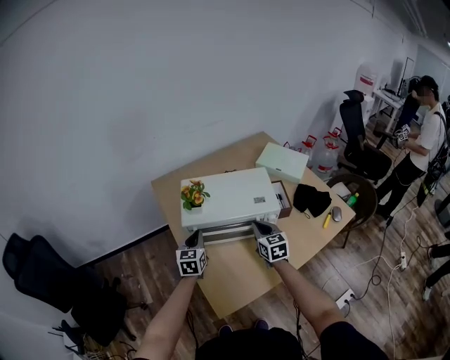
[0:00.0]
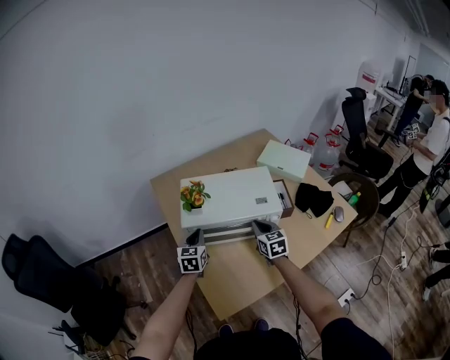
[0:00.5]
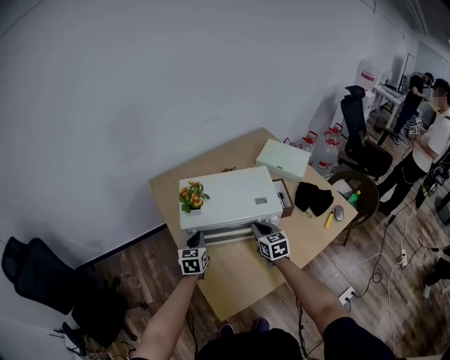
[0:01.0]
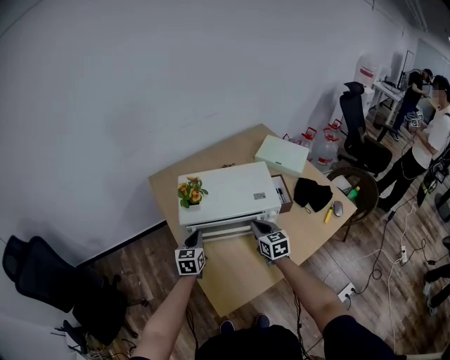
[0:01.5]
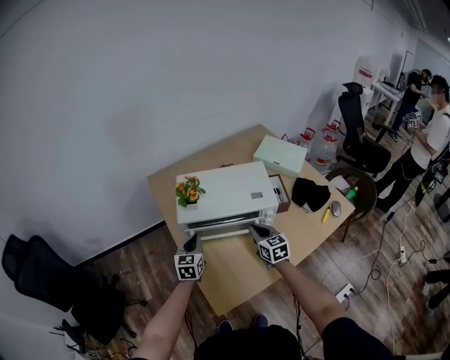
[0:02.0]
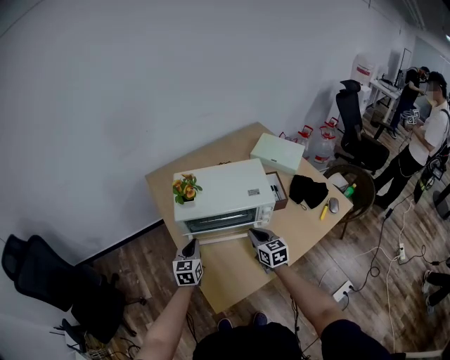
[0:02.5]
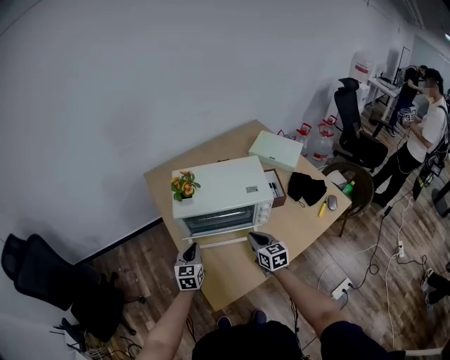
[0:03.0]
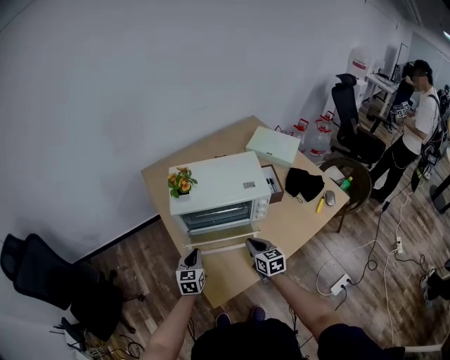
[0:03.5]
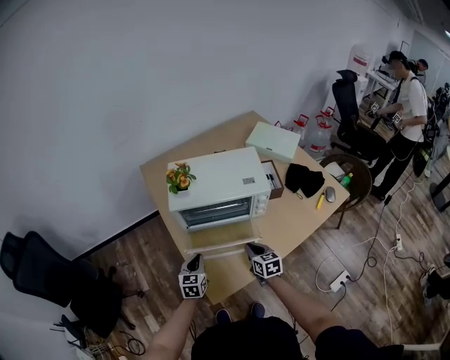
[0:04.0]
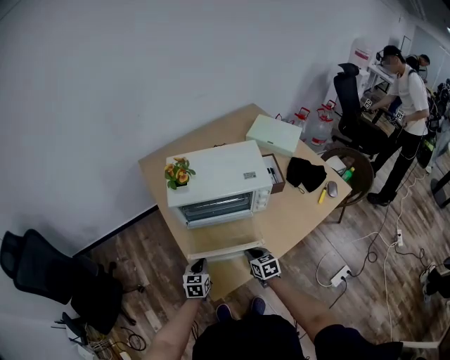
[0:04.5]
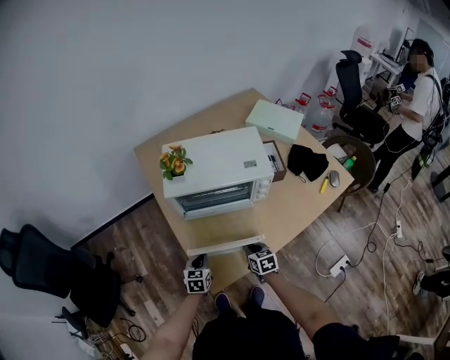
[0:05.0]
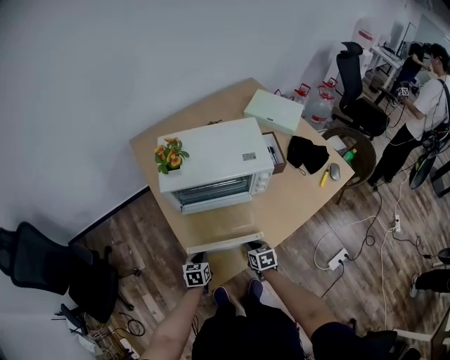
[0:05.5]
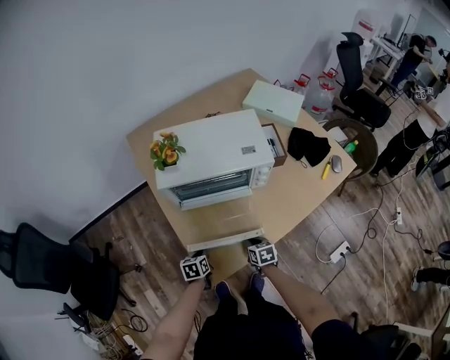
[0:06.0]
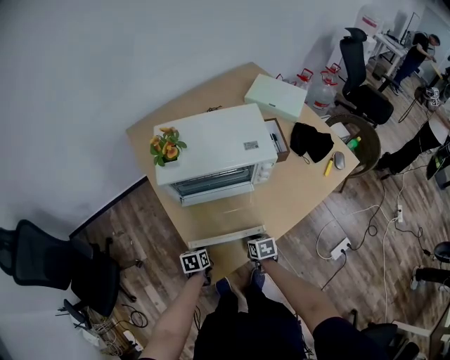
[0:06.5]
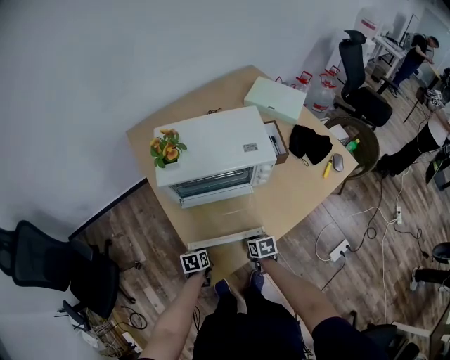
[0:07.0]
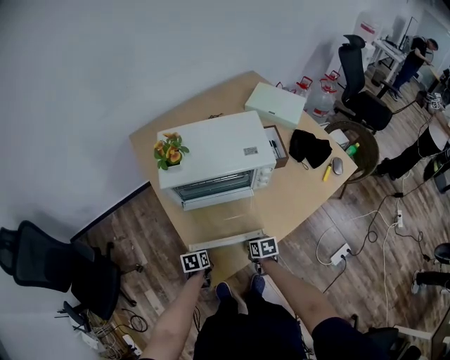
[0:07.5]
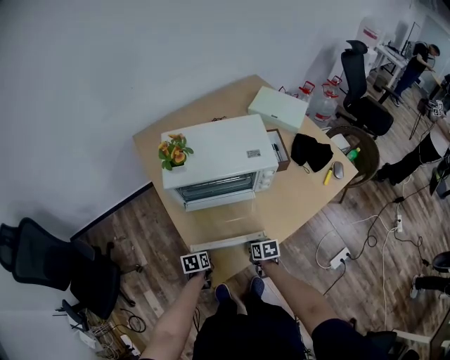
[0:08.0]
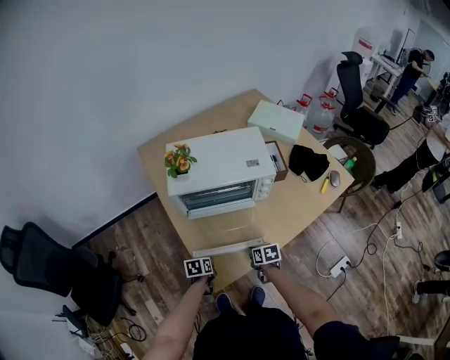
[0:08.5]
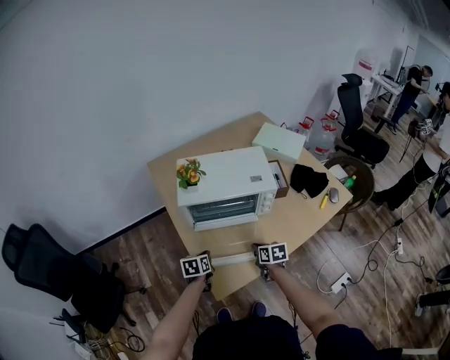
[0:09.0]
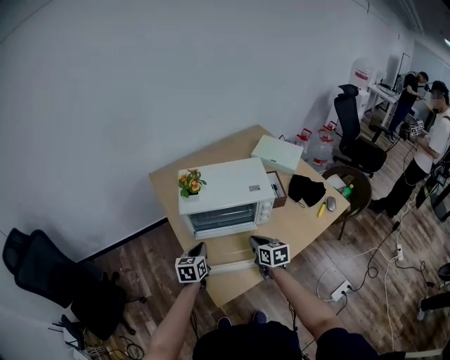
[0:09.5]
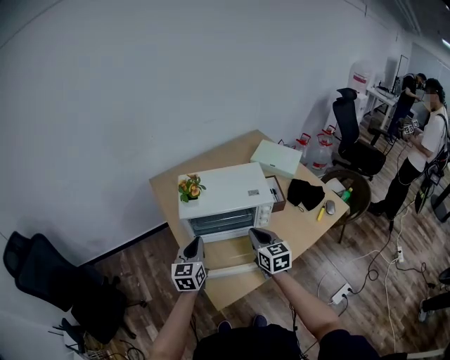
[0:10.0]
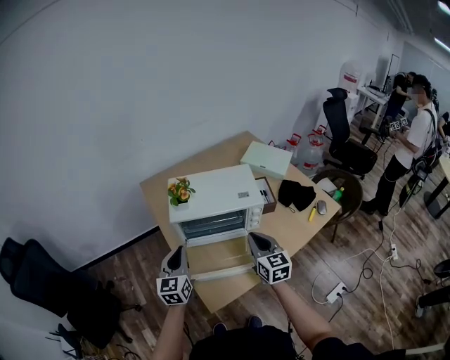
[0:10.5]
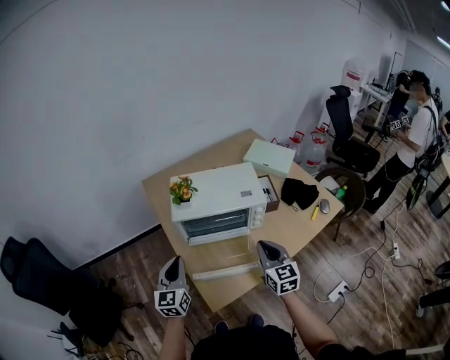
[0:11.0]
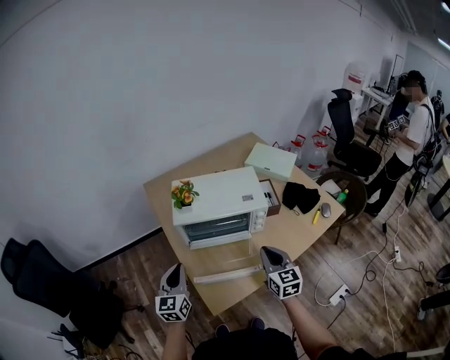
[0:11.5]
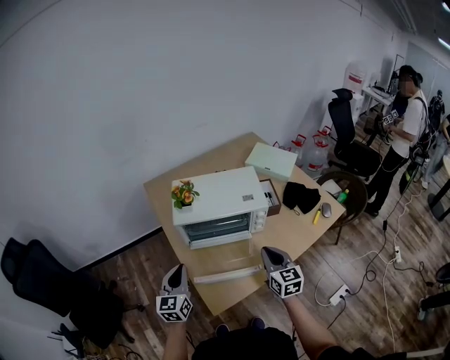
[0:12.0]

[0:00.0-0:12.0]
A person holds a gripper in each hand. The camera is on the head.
0:00.0 to 0:02.0: The grippers stay close to where they were, moving slightly.
0:02.0 to 0:04.0: The grippers both shift backward and downward by about 15 cm.
0:04.0 to 0:06.0: Both grippers move downward, approximately 15 cm. The right gripper turns by approximately 20 degrees. The left gripper changes its angle by about 30 degrees.
0:06.0 to 0:08.0: There are only small adjustments of the grippers.
0:08.0 to 0:10.0: Both grippers travel together upward, approximately 35 cm. The left gripper points its fingers roughly 50 degrees further upward. Meanwhile the right gripper tilts its fingers roughly 40 degrees upward.
0:10.0 to 0:12.0: The right gripper moves backward and to the right, about 10 cm. Meanwhile the left gripper travels backward by some 5 cm.

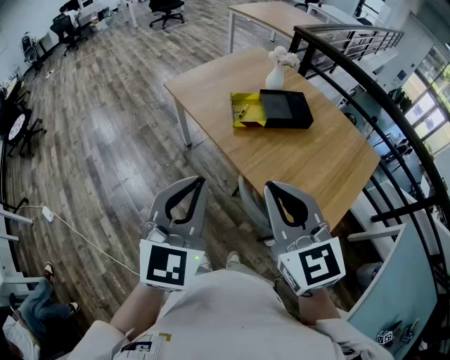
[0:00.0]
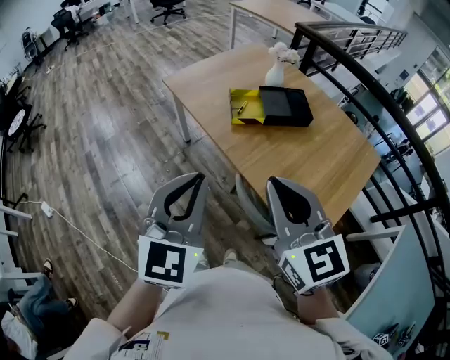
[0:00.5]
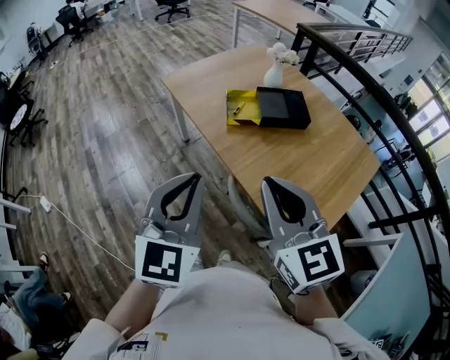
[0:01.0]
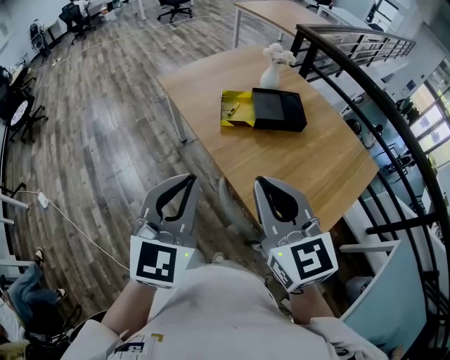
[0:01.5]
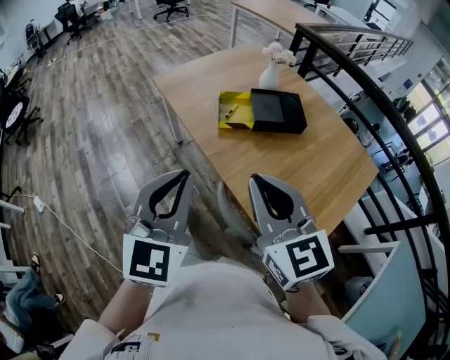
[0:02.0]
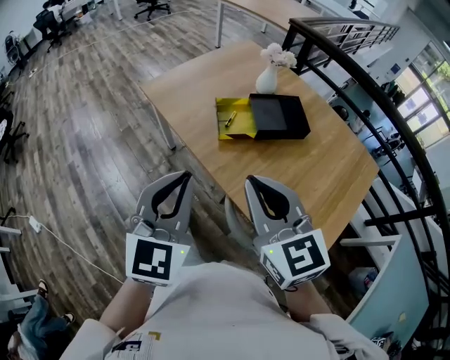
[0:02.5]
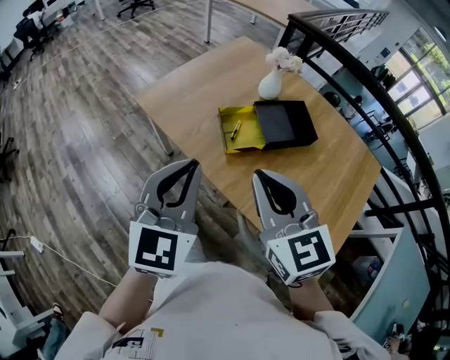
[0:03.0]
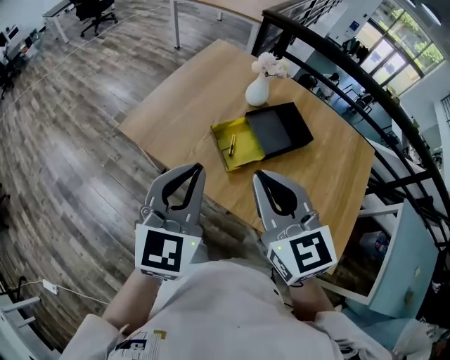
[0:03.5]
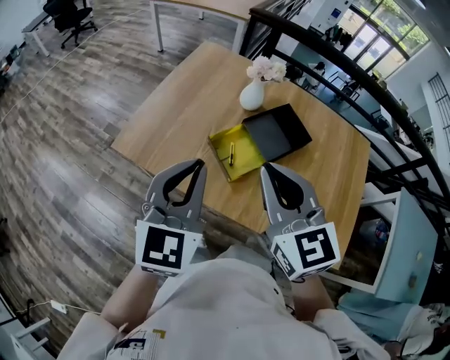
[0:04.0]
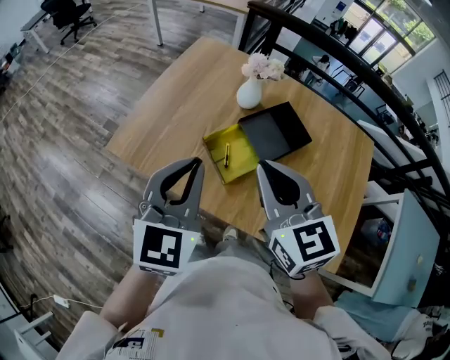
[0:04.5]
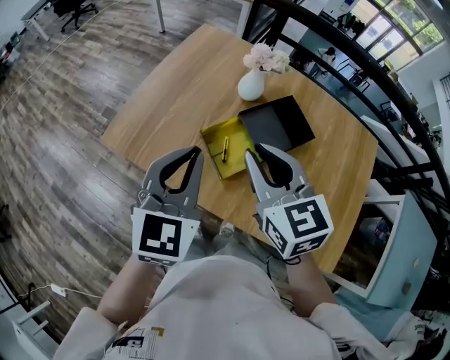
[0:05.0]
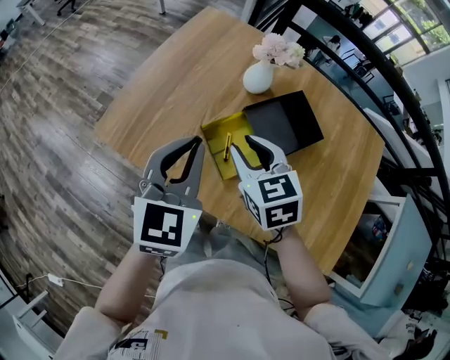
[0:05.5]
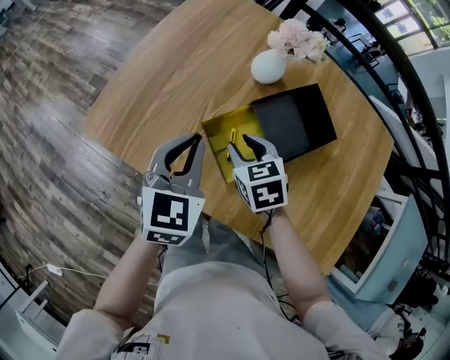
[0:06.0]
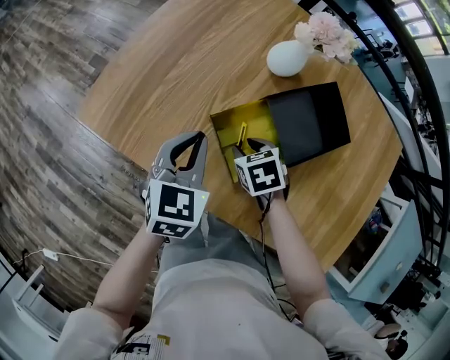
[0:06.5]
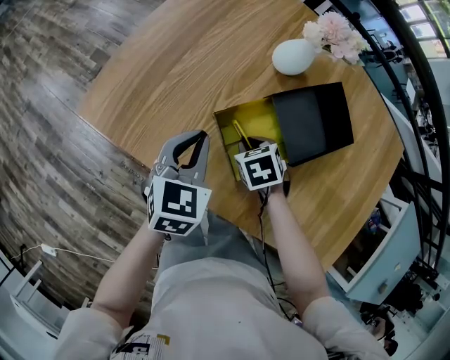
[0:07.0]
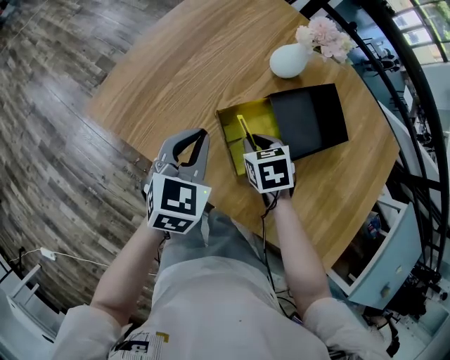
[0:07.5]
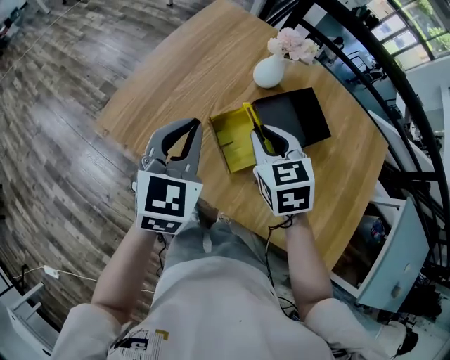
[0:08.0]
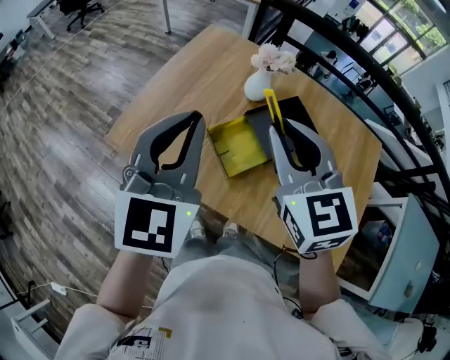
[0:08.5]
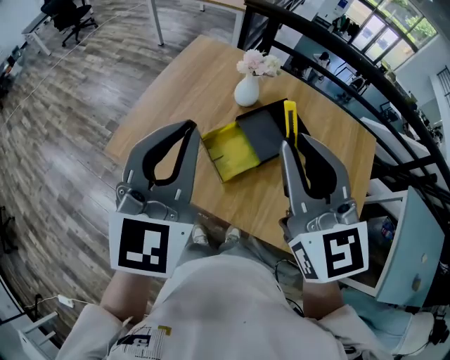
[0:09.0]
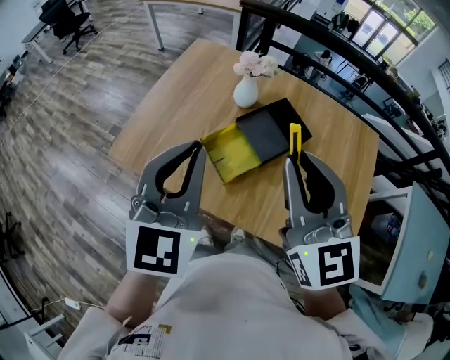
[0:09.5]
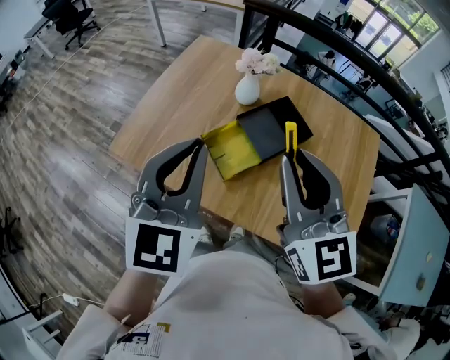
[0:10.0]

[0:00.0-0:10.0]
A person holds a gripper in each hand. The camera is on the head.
0:00.0 to 0:02.0: The left gripper moves to the right and forward, about 10 cm. The right gripper heads forward and to the right, covering roughly 10 cm.
0:02.0 to 0:04.0: The left gripper shifts by approximately 40 cm, and changes its angle by roughly 30 degrees, while the right gripper ends up roughly 40 cm from where it was, and changes its angle by roughly 30 degrees.
0:04.0 to 0:06.0: The grippers both shift downward and forward by about 30 cm. The right gripper points its fingers approximately 40 degrees further downward, and opens up.
0:06.0 to 0:08.0: The left gripper heads upward, covering about 5 cm; the right gripper is displaced upward by some 10 cm, and closes up.
0:08.0 to 0:10.0: The right gripper heads upward and backward, covering some 25 cm, and tilts its fingers roughly 40 degrees upward, while the left gripper is displaced upward, backward and to the right by some 20 cm.

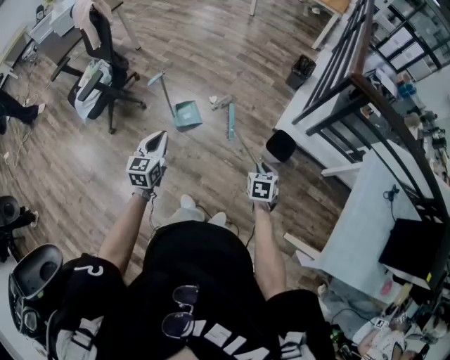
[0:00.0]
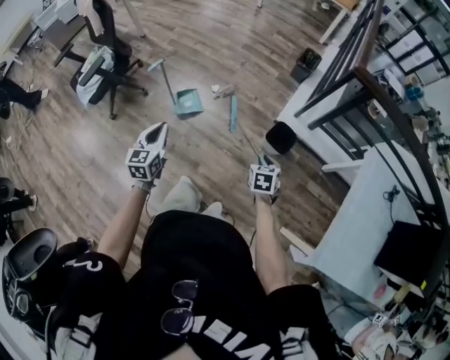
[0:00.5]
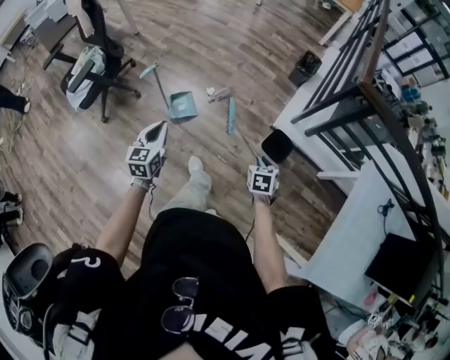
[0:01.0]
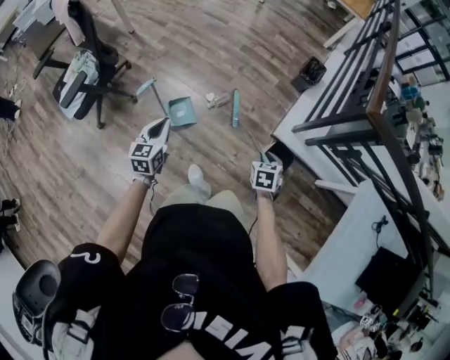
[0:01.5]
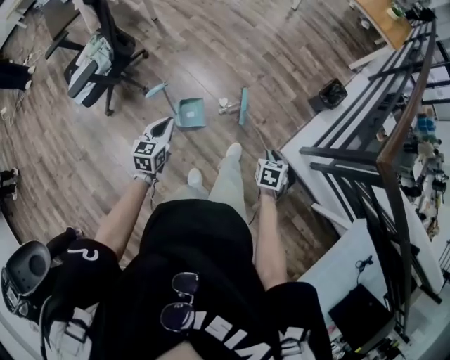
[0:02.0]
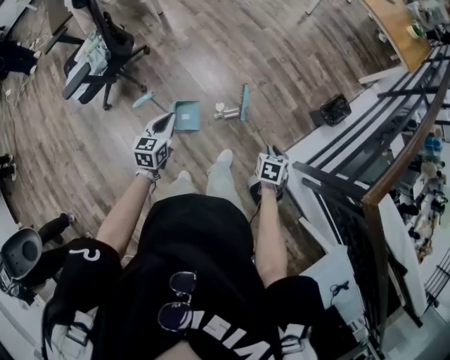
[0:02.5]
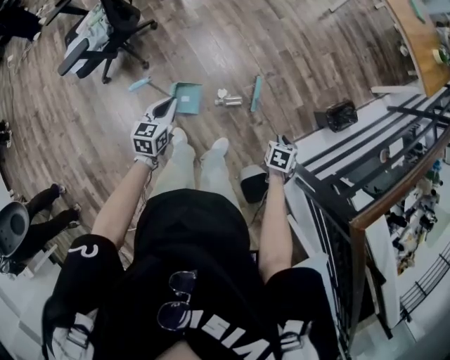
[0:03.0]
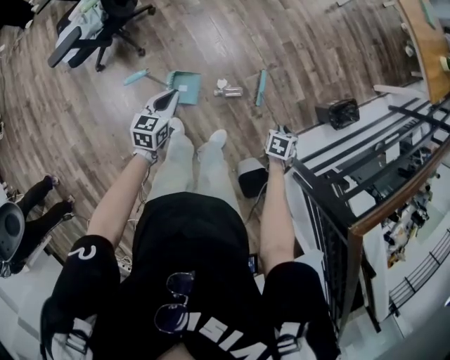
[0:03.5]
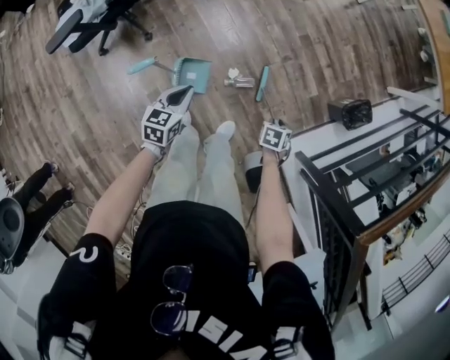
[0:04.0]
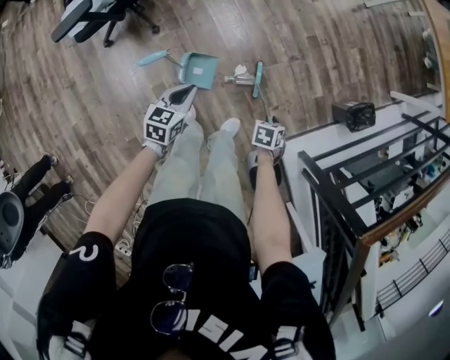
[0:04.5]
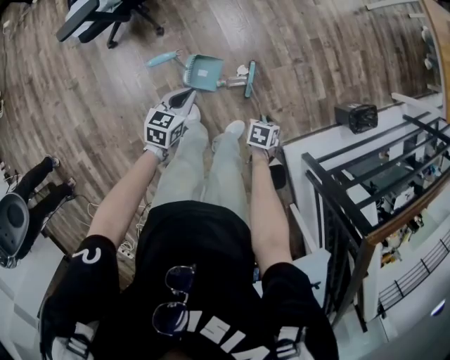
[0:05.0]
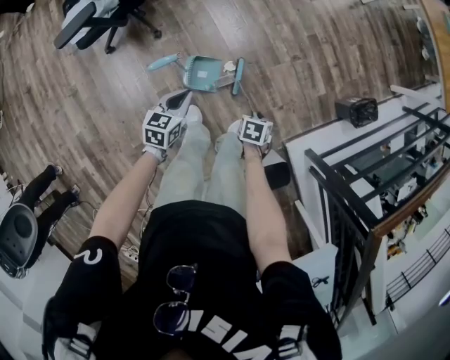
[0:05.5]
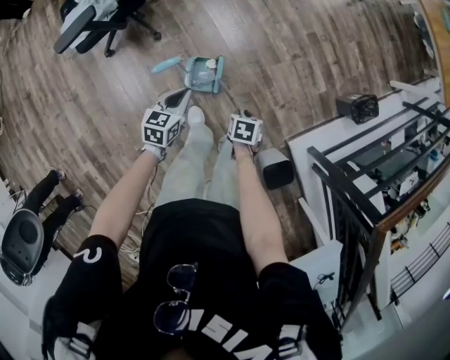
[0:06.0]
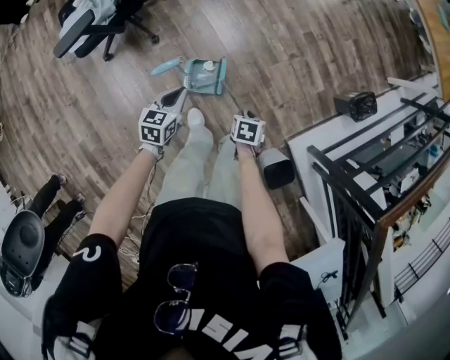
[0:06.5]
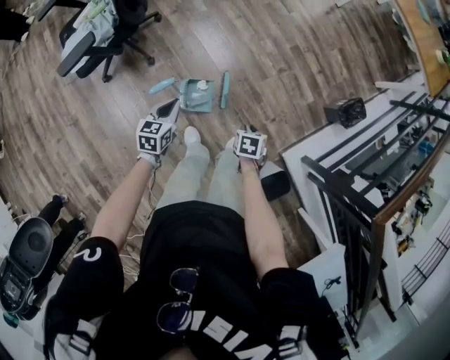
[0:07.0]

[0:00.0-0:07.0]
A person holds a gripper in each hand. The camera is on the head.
0:00.0 to 0:02.0: Both grippers move forward, approximately 35 cm.
0:02.0 to 0:03.5: The two grippers go some 25 cm forward and downward.
0:03.5 to 0:05.0: The left gripper changes place by approximately 10 cm; the right gripper shifts by some 20 cm.
0:05.0 to 0:07.0: The right gripper ends up approximately 10 cm from where it was, while the left gripper shifts by approximately 5 cm.
